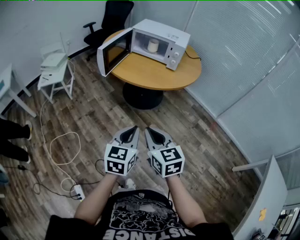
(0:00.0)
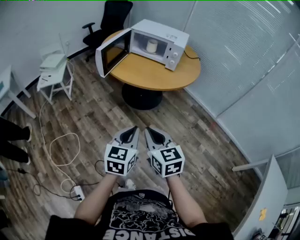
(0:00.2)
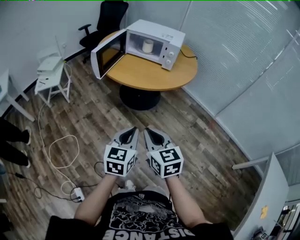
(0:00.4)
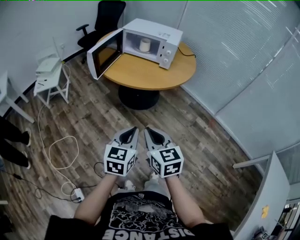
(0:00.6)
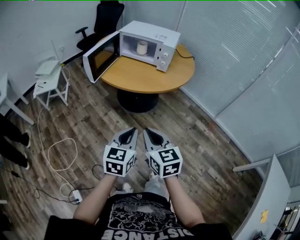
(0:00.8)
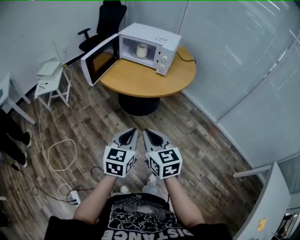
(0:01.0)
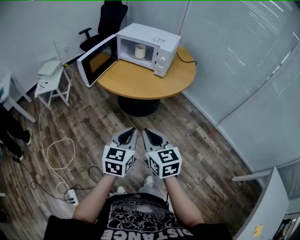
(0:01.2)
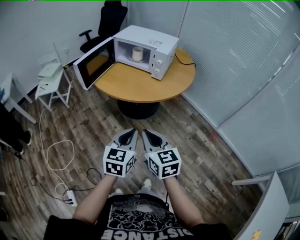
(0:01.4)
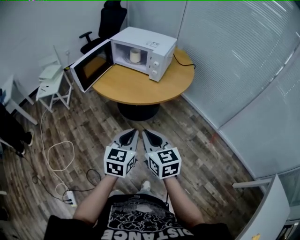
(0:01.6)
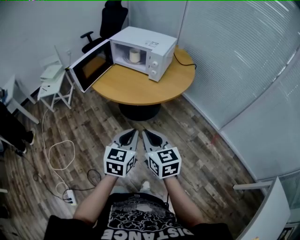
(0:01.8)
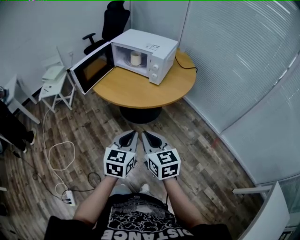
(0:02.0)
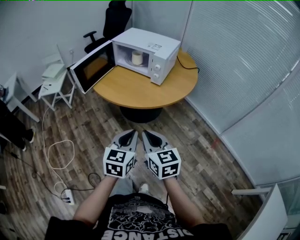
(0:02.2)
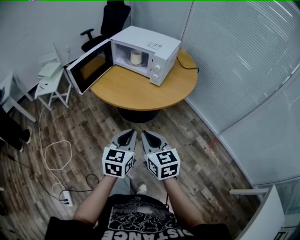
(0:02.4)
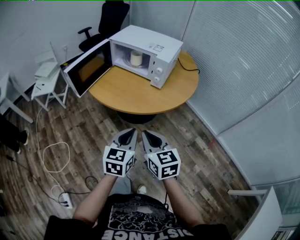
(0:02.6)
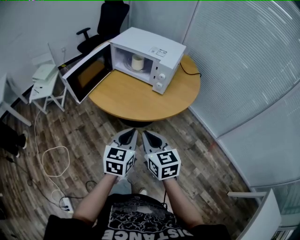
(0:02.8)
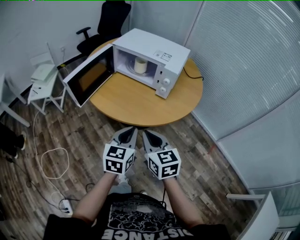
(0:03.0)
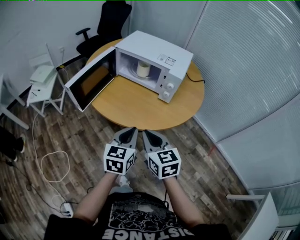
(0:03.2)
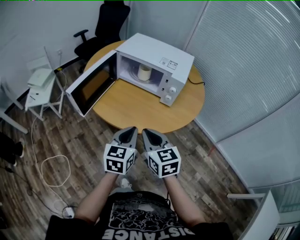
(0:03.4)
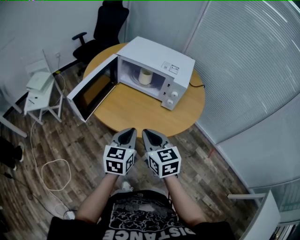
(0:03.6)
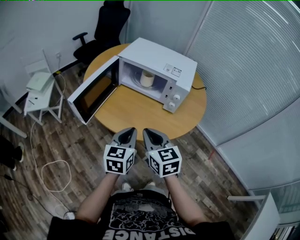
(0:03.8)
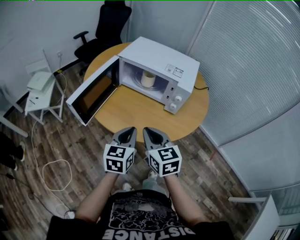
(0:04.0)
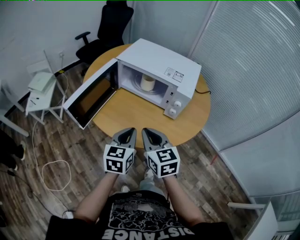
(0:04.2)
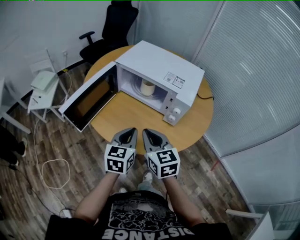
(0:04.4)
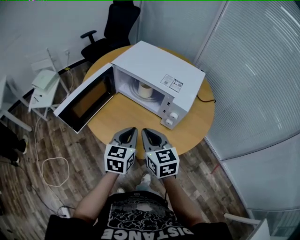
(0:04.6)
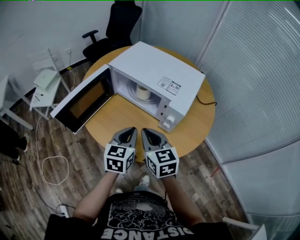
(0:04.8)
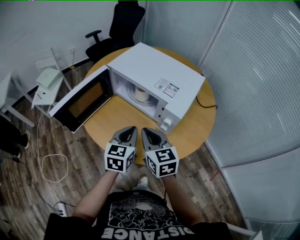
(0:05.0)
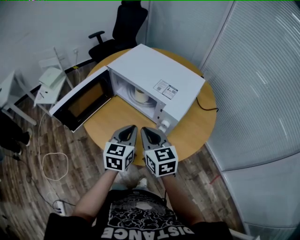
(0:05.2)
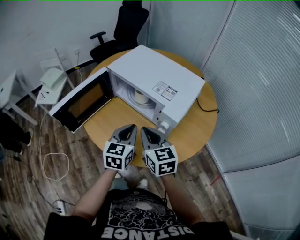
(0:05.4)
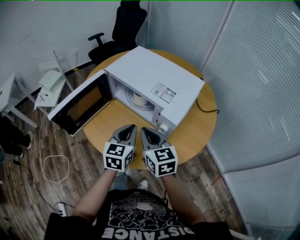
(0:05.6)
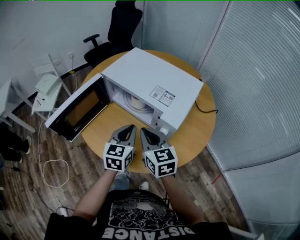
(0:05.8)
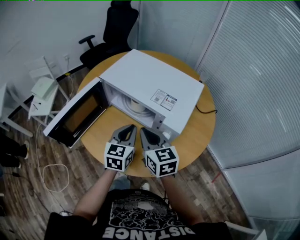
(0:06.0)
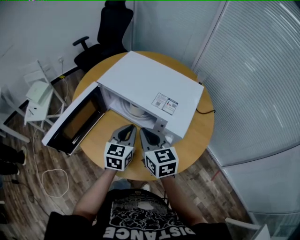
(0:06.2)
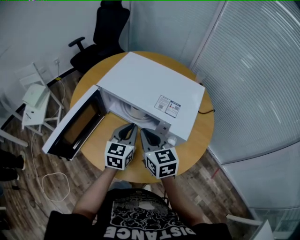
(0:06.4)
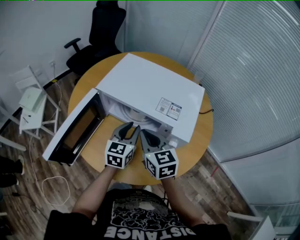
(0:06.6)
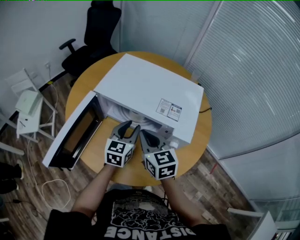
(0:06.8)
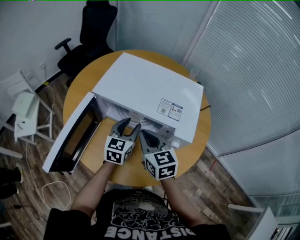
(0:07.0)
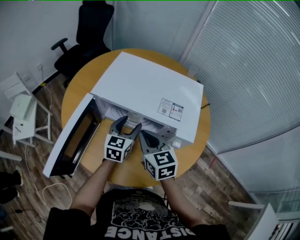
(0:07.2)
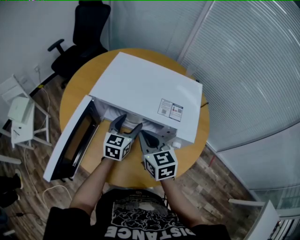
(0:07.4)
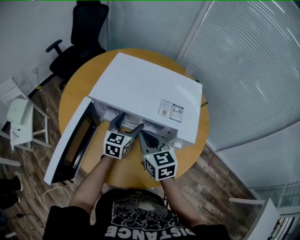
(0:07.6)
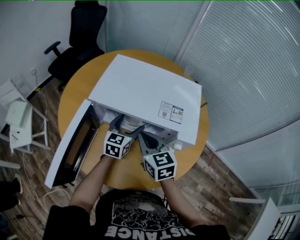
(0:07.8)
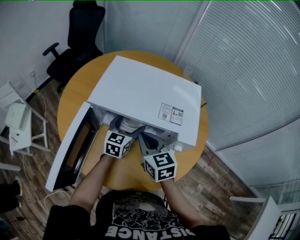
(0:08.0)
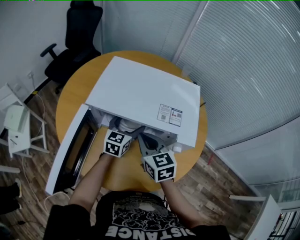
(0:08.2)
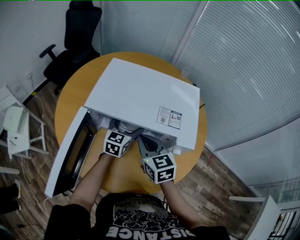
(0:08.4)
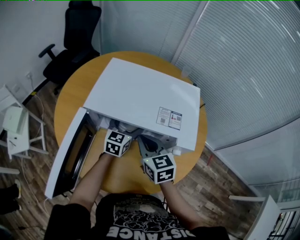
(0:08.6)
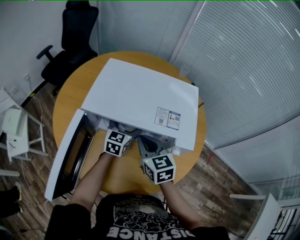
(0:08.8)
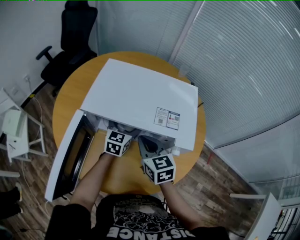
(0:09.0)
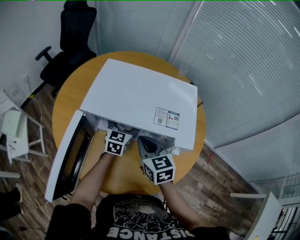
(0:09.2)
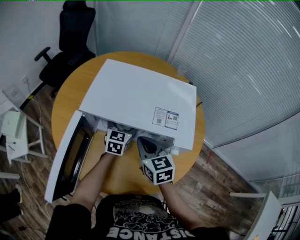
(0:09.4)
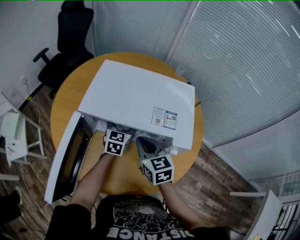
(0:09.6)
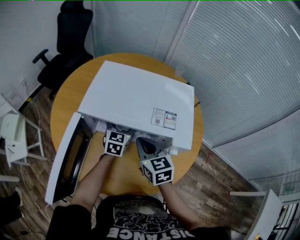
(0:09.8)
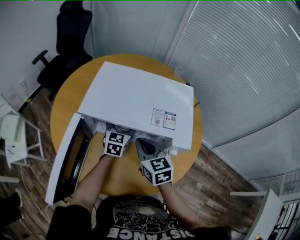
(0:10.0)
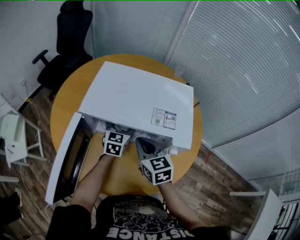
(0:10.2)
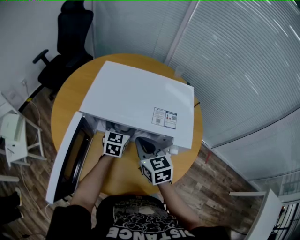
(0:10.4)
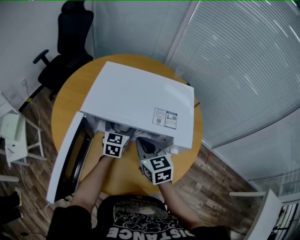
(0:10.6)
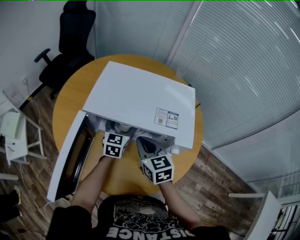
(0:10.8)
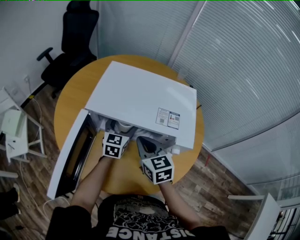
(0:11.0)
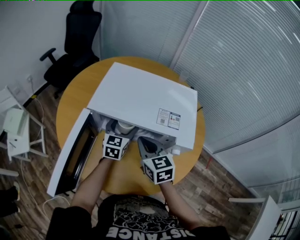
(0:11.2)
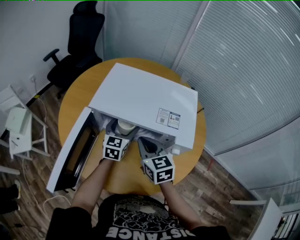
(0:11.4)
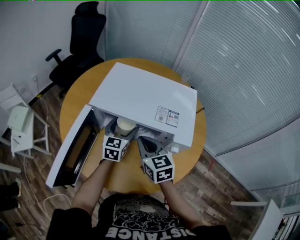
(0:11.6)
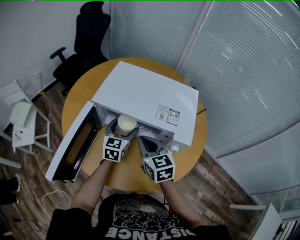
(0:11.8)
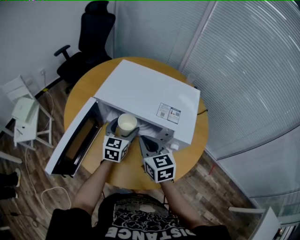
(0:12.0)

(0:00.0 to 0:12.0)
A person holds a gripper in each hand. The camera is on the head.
0:00.0 - 0:01.6: The grippers both shift to the right and forward by roughly 20 cm.
0:01.6 - 0:03.0: The two grippers go roughly 20 cm forward.
0:03.0 - 0:04.4: The two grippers go approximately 20 cm forward.
0:04.4 - 0:06.0: The grippers both shift forward and to the right by some 15 cm.
0:06.0 - 0:07.6: The left gripper shifts some 15 cm forward, swivels about 20 degrees, and opens its fingers, while the right gripper shifts about 5 cm forward.
0:07.6 - 0:09.0: The left gripper goes some 5 cm forward.
0:09.0 - 0:10.4: There are only small adjustments of the grippers.
0:10.4 - 0:12.0: The left gripper moves backward, approximately 5 cm.

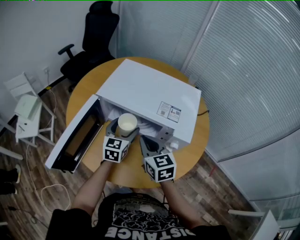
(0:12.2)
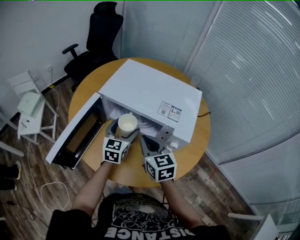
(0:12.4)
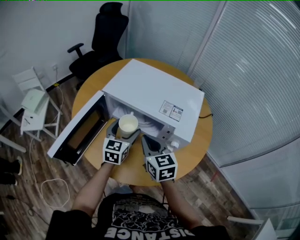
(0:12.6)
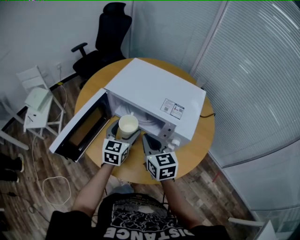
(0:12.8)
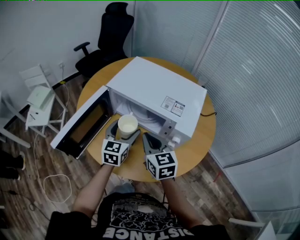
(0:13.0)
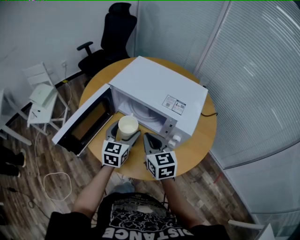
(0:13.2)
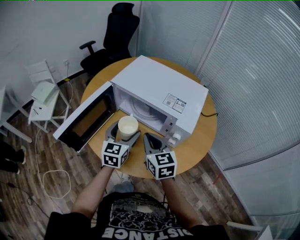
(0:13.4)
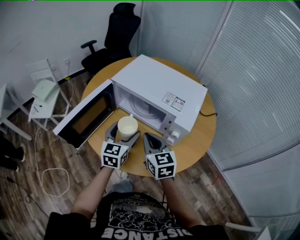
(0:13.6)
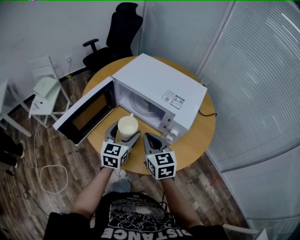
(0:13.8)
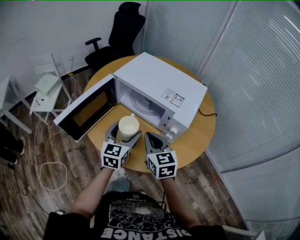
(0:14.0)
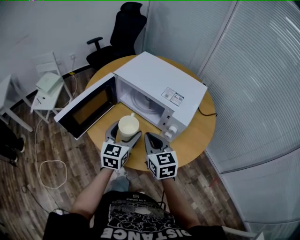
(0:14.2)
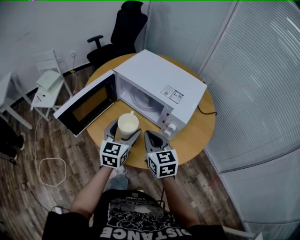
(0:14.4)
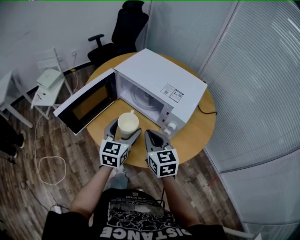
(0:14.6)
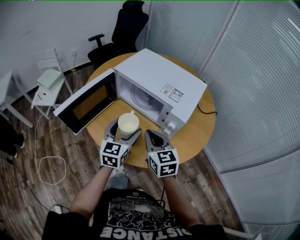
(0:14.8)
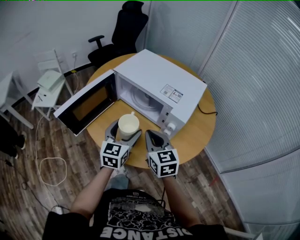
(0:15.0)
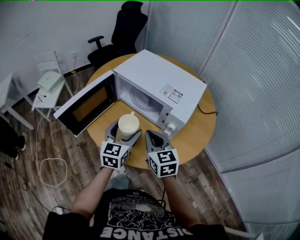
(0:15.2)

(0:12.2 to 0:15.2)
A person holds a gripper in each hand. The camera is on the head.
0:12.2 - 0:13.8: The right gripper shifts about 10 cm backward; the left gripper shifts about 15 cm backward.
0:13.8 - 0:15.2: The grippers move only a little.

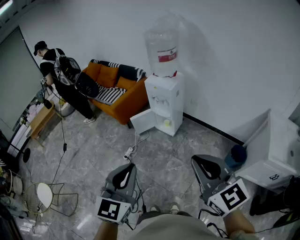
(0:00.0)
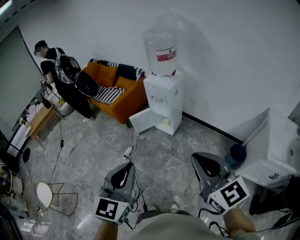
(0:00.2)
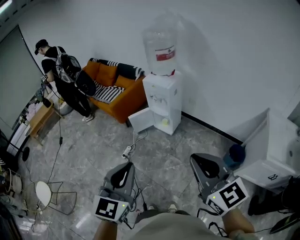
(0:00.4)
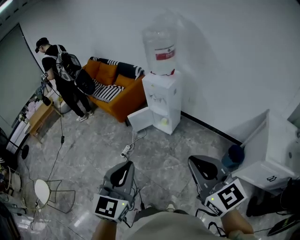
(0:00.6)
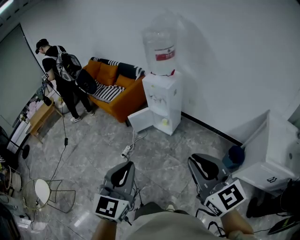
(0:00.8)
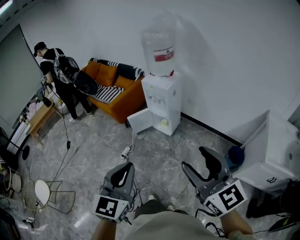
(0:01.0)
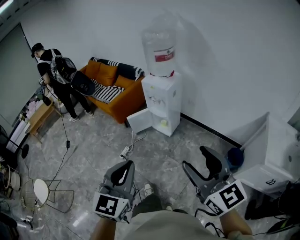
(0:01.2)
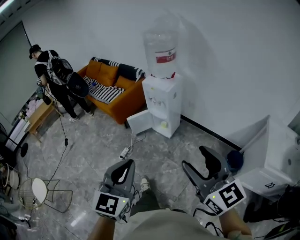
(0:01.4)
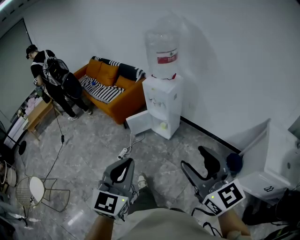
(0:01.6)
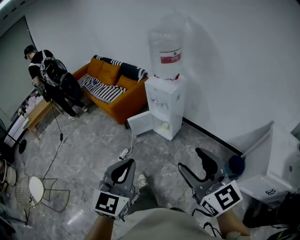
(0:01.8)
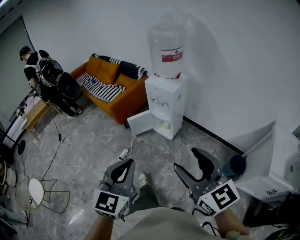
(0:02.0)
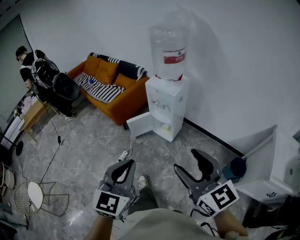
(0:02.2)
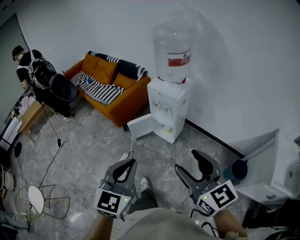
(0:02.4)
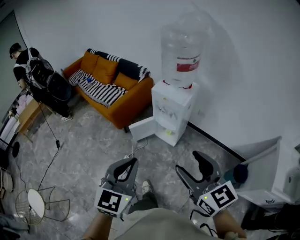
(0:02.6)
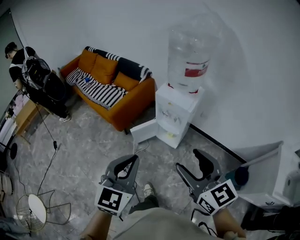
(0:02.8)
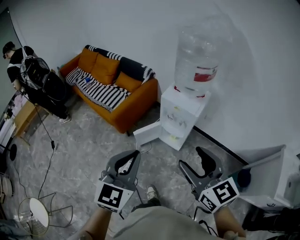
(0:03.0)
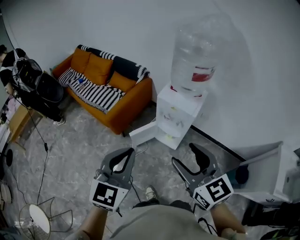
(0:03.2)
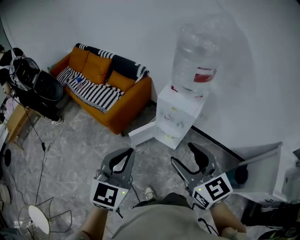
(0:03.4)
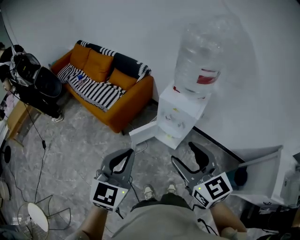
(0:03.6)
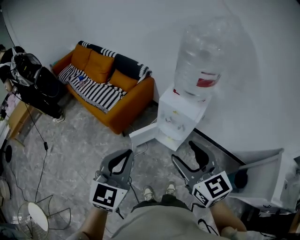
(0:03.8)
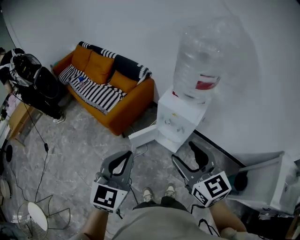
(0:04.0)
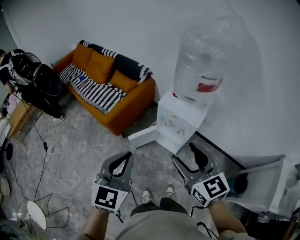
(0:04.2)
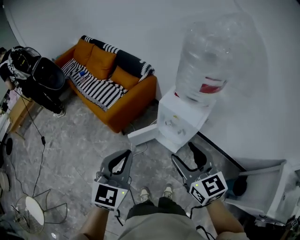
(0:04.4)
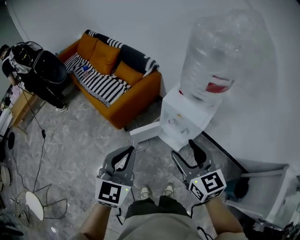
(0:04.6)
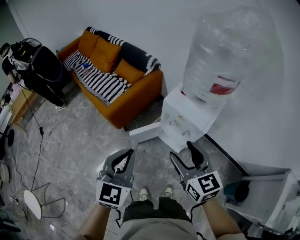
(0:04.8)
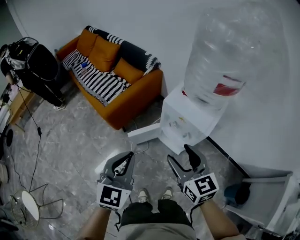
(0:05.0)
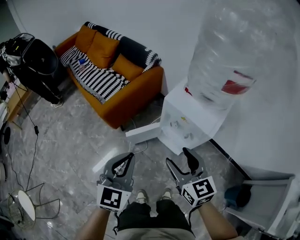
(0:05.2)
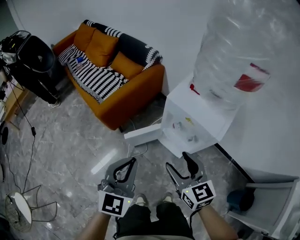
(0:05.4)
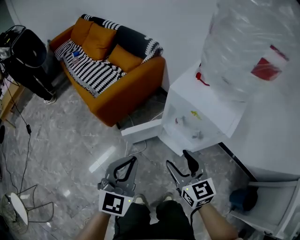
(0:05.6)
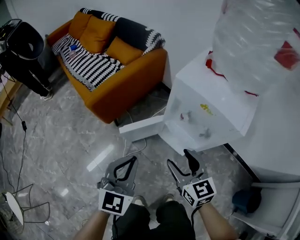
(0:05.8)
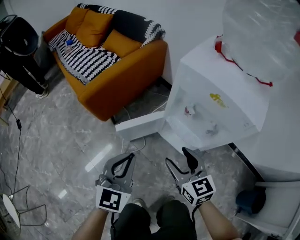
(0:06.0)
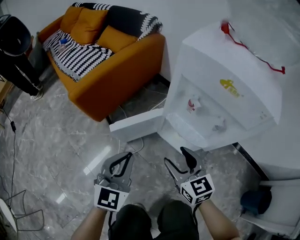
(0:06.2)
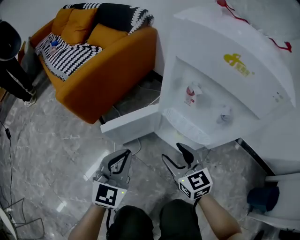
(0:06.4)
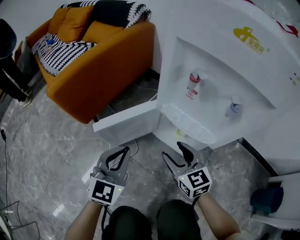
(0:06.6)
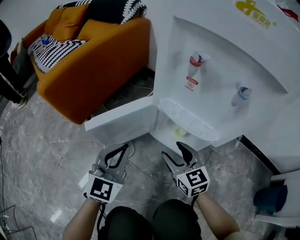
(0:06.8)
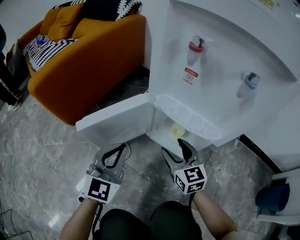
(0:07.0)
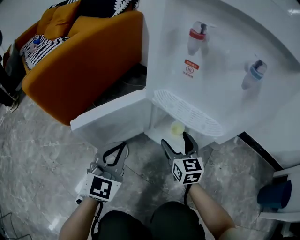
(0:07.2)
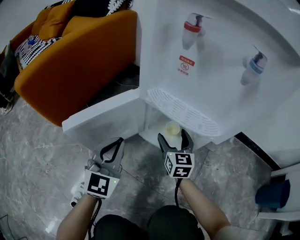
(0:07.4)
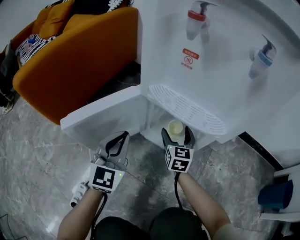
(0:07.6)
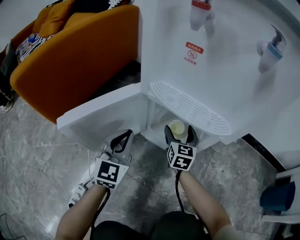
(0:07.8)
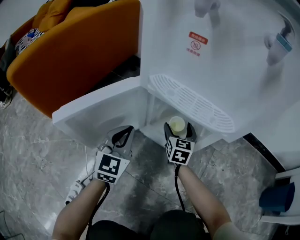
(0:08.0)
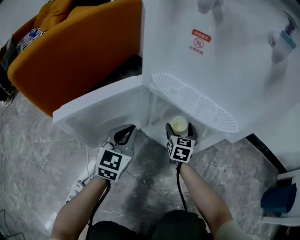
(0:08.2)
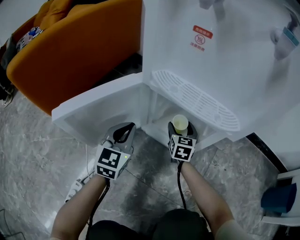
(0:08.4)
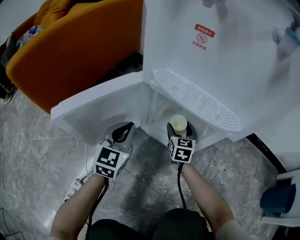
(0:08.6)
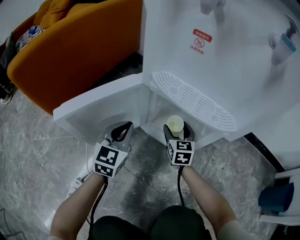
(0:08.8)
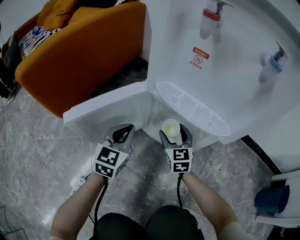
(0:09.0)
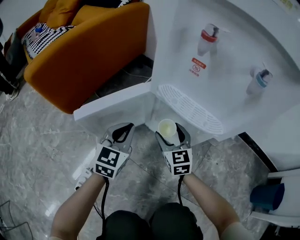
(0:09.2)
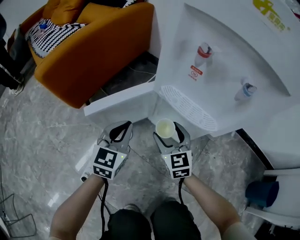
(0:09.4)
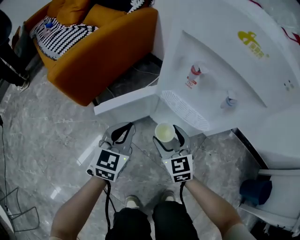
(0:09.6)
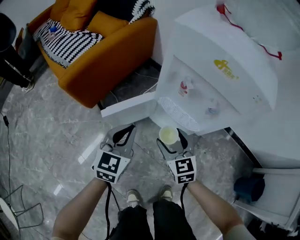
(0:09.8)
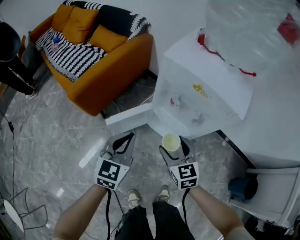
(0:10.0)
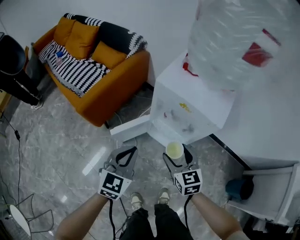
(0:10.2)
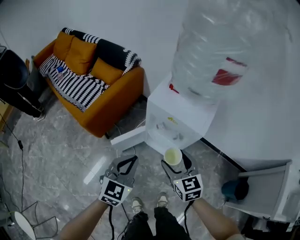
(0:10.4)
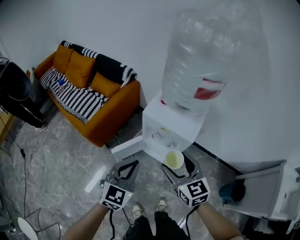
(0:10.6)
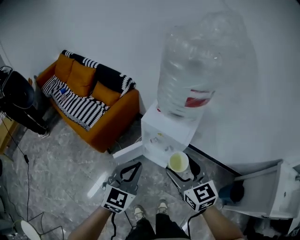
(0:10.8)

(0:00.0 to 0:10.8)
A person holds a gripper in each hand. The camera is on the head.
0:00.0 - 0:01.6: The right gripper changes place by roughly 5 cm, and opens. Meanwhile the left gripper moves about 5 cm.
0:01.6 - 0:03.0: The pair of grippers is taken forward and to the left, approximately 40 cm.
0:03.0 - 0:04.6: The two grippers go roughly 20 cm forward and downward.
0:04.6 - 0:06.2: The grippers both shift downward by roughly 50 cm.
0:06.2 - 0:07.8: The grippers both shift downward and forward by some 35 cm. The right gripper rotates some 40 degrees.
0:07.8 - 0:09.2: The right gripper heads backward, upward and to the left, covering some 15 cm, and changes its angle by about 30 degrees.
0:09.2 - 0:10.8: The two grippers go approximately 70 cm upward.
